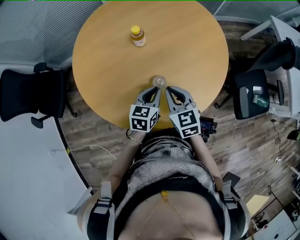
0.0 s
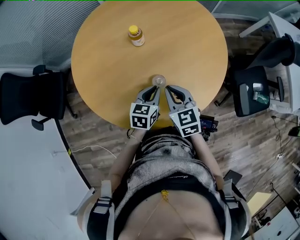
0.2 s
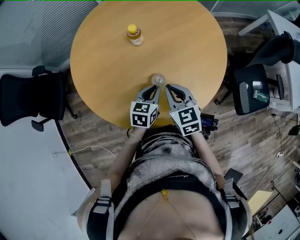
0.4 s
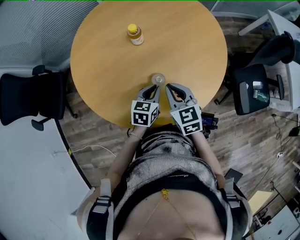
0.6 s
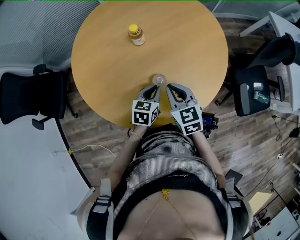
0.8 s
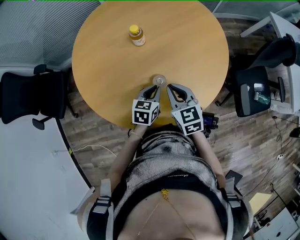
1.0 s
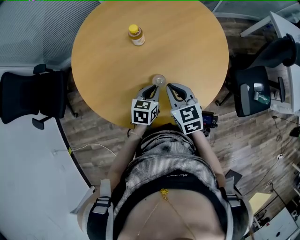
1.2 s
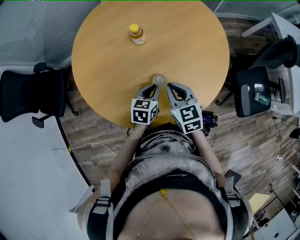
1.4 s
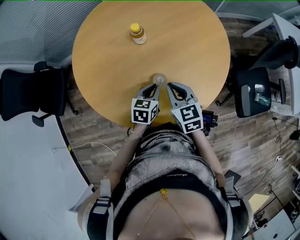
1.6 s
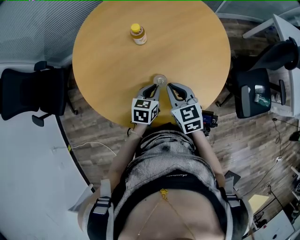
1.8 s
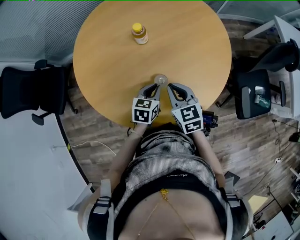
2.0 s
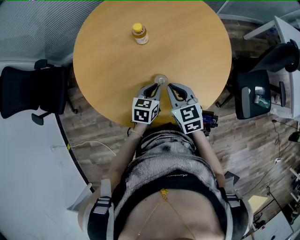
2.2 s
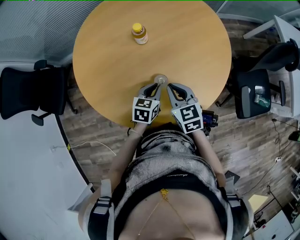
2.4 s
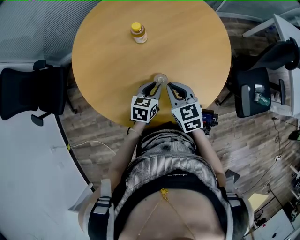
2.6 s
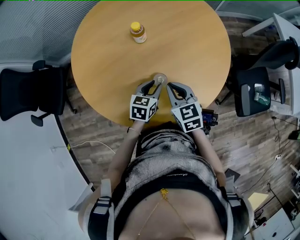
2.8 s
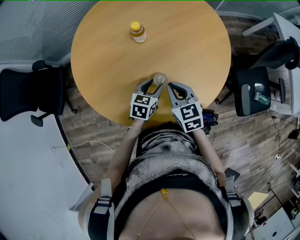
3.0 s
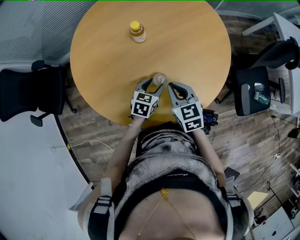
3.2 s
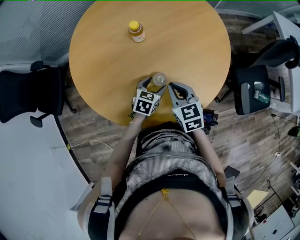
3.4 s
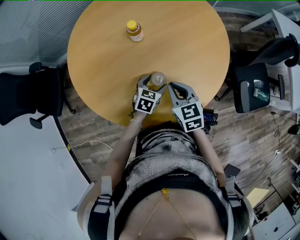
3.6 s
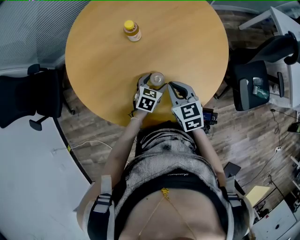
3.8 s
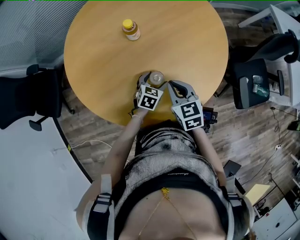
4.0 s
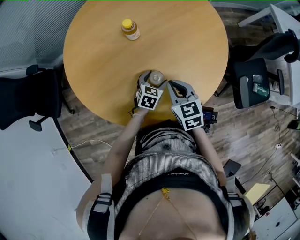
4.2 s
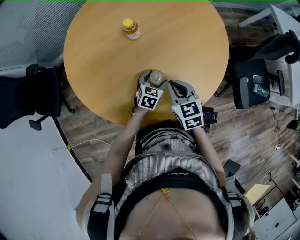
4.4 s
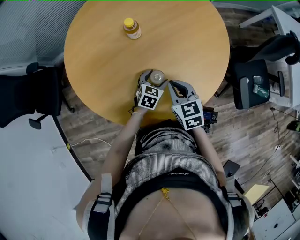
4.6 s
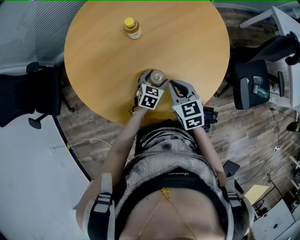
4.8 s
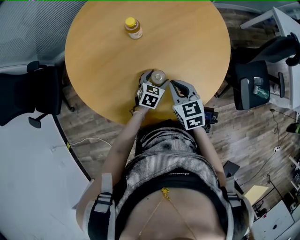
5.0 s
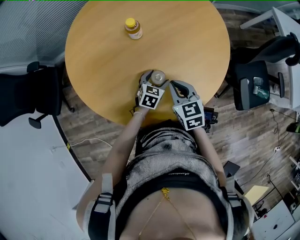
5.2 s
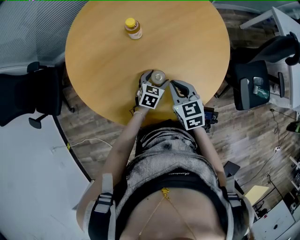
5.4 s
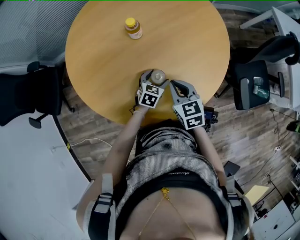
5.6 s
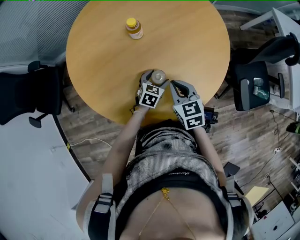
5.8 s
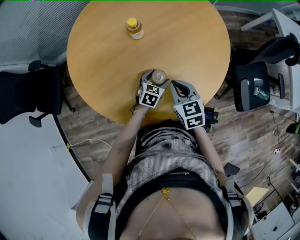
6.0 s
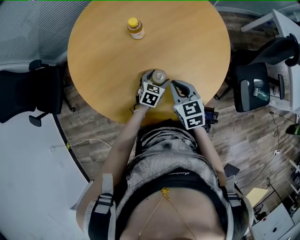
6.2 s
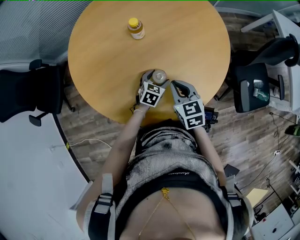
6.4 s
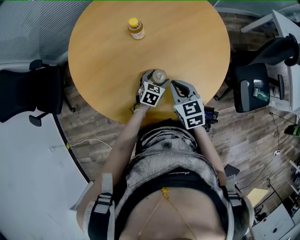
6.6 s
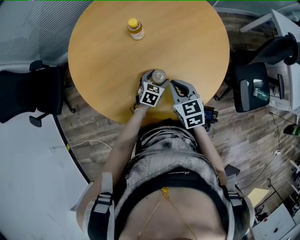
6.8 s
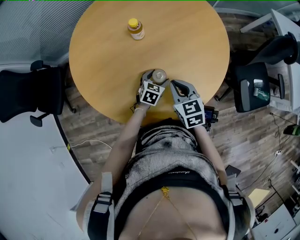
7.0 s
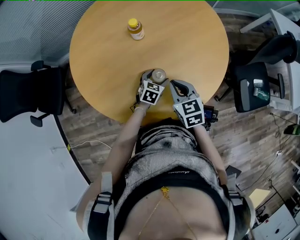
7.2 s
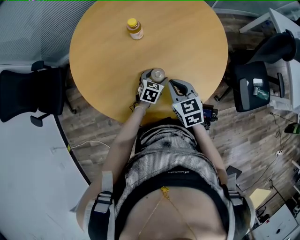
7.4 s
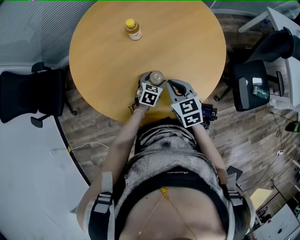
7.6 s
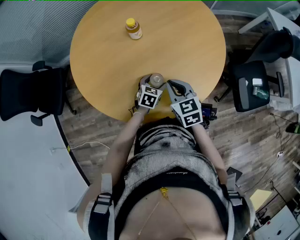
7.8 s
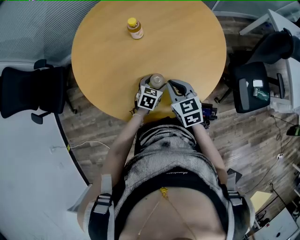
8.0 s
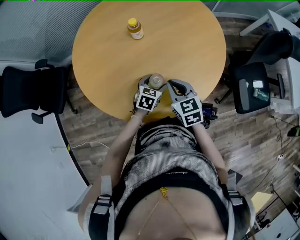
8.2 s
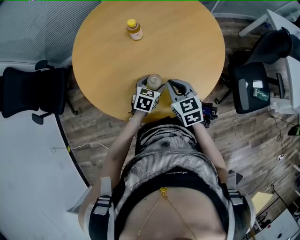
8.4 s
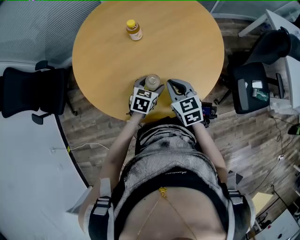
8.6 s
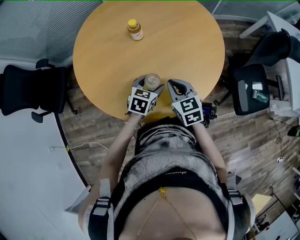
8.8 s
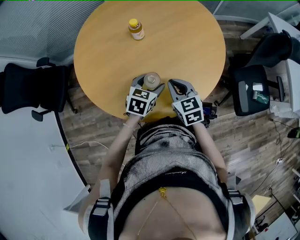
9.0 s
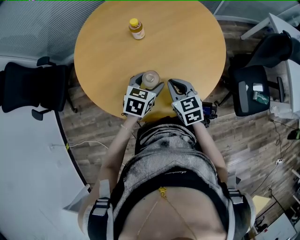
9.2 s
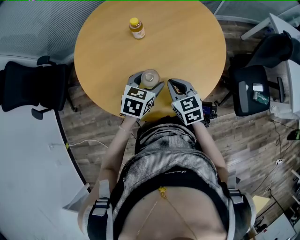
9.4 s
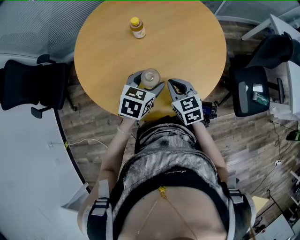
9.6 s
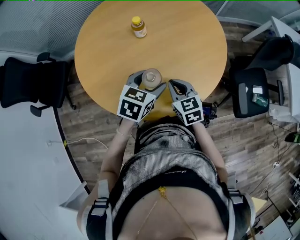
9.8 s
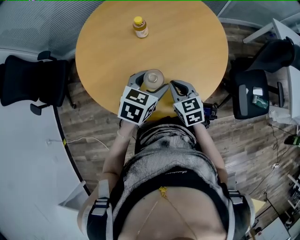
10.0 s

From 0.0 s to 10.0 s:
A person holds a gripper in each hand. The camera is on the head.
From 0.0 s to 1.4 s: The grippers move only a little.
From 1.4 s to 2.8 s: Both grippers stay put.
From 2.8 s to 4.2 s: The left gripper is displaced downward by some 10 cm, and opens.
From 4.2 s to 7.2 s: Neither gripper changes place.
From 7.2 s to 8.6 s: The left gripper goes some 10 cm upward and backward.
From 8.6 s to 10.0 s: The left gripper travels upward by some 15 cm.

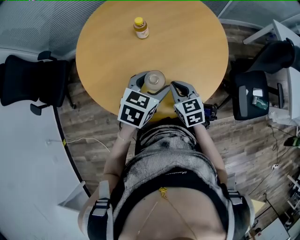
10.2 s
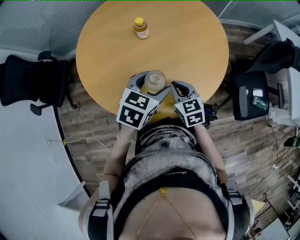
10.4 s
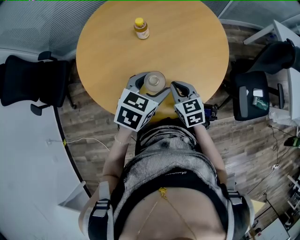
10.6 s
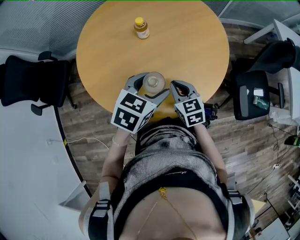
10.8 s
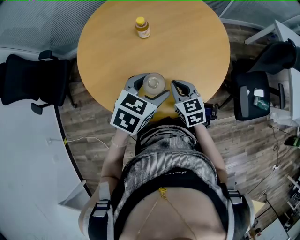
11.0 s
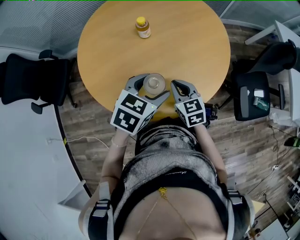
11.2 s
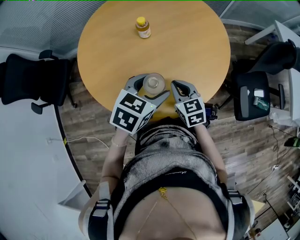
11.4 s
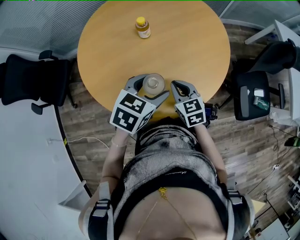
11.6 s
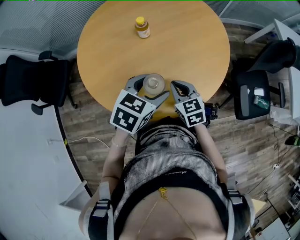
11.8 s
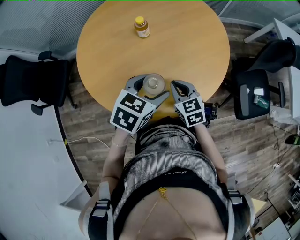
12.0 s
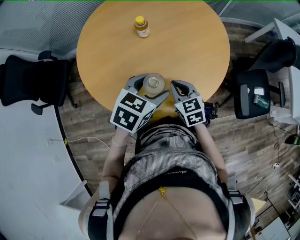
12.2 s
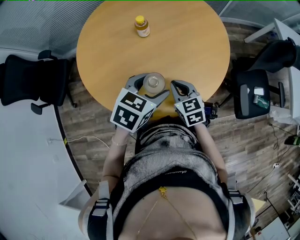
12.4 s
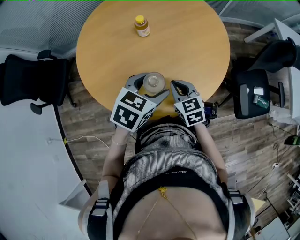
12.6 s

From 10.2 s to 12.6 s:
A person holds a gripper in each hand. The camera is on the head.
From 10.2 s to 11.4 s: There are only small adjustments of the grippers.
From 11.4 s to 12.6 s: The two grippers keep their place.

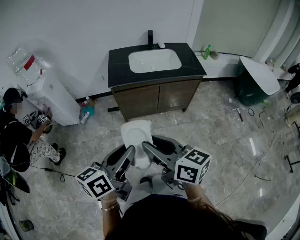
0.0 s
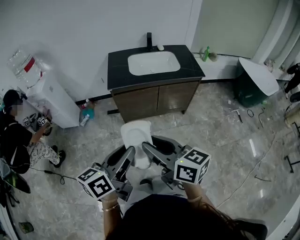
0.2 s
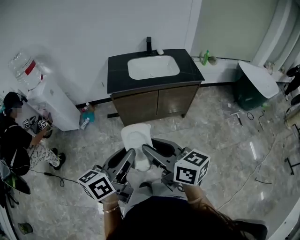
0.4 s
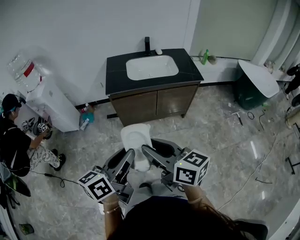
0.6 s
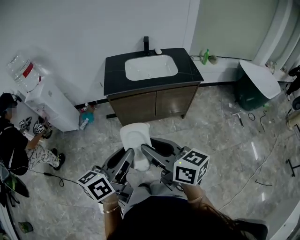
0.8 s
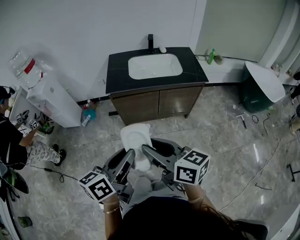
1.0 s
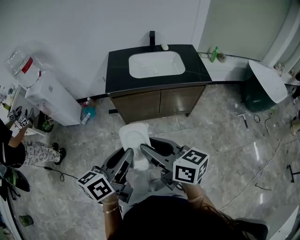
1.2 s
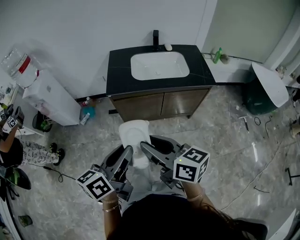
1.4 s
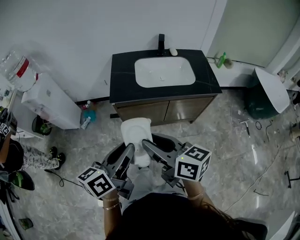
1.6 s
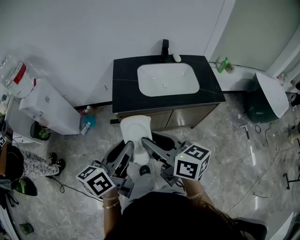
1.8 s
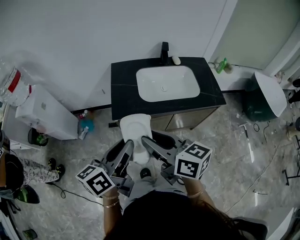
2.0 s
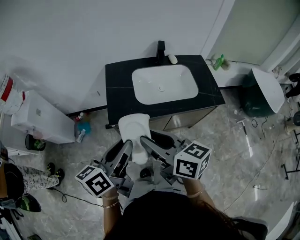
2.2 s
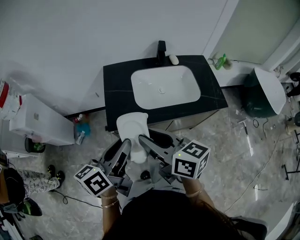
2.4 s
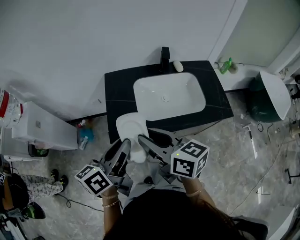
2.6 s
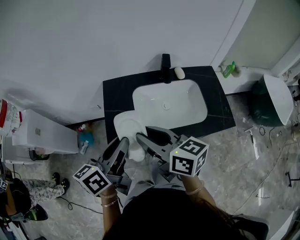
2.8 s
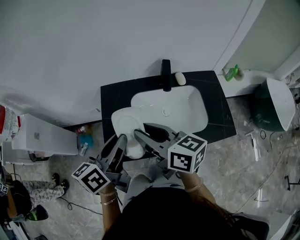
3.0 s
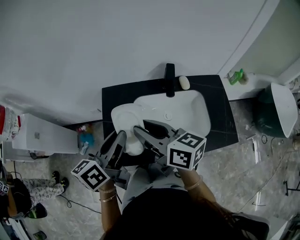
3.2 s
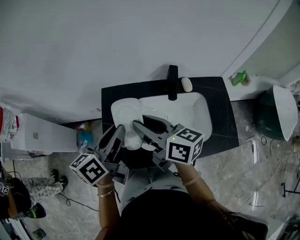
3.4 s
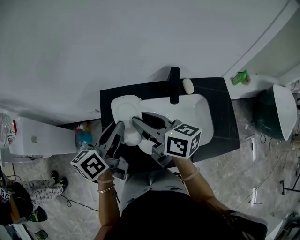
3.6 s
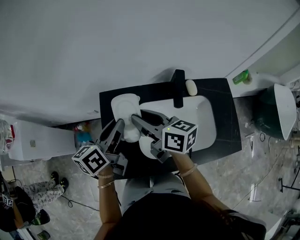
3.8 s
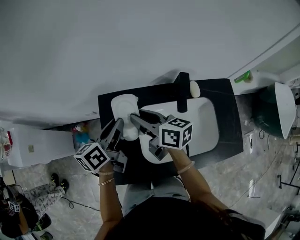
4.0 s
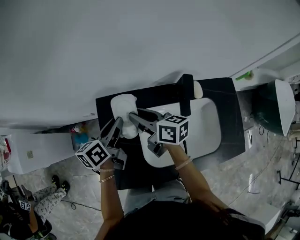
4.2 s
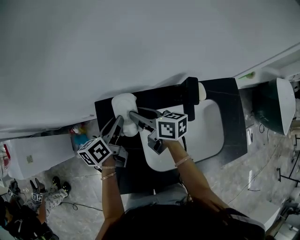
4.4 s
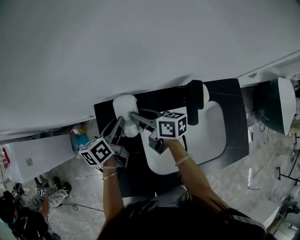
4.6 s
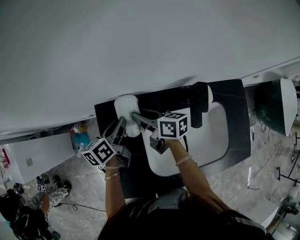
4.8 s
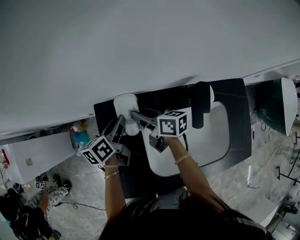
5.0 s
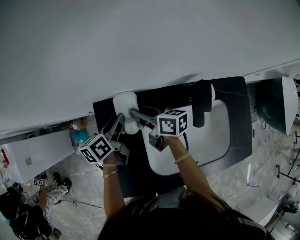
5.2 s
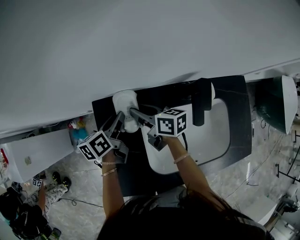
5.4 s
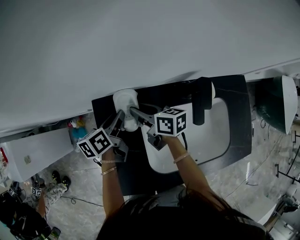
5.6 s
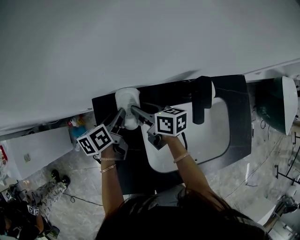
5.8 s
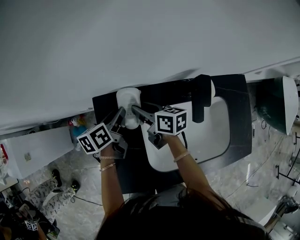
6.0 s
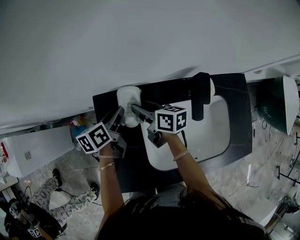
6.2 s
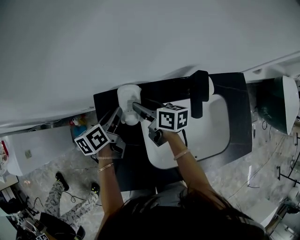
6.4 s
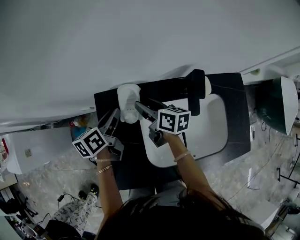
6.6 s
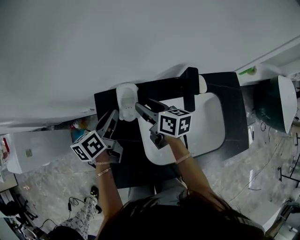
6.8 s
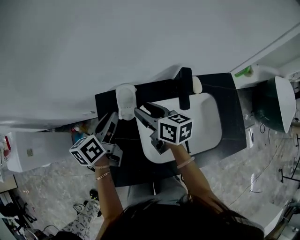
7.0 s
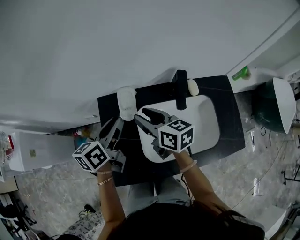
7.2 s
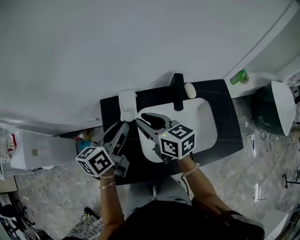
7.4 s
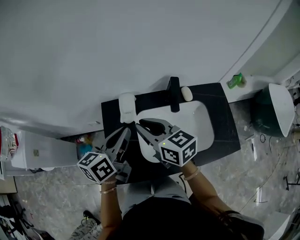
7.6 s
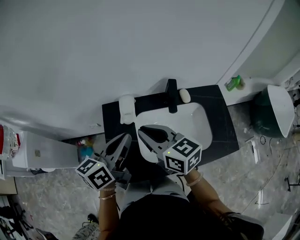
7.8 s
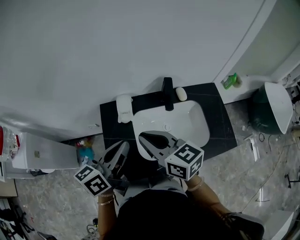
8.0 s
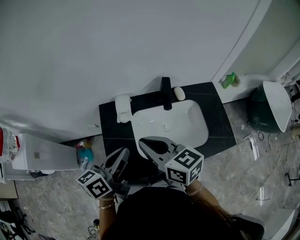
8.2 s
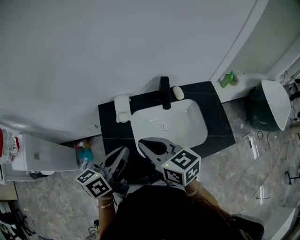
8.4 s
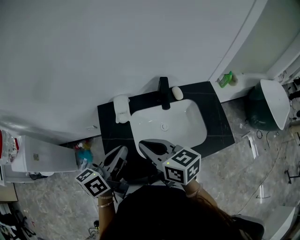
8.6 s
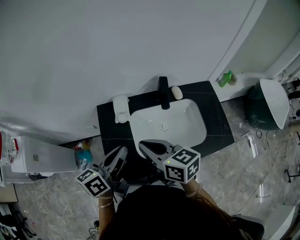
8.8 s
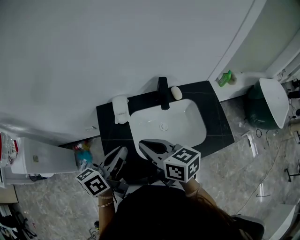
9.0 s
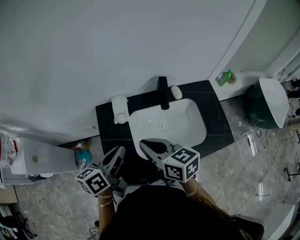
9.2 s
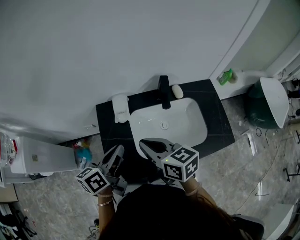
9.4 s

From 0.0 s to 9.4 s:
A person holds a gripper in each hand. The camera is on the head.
From 0.0 s to 1.6 s: The grippers both shift forward by roughly 20 cm.
From 1.6 s to 3.2 s: The two grippers travel together, forward, roughly 40 cm.
From 3.2 s to 4.8 s: Both grippers travel together forward and downward, roughly 35 cm. The right gripper swivels about 20 degrees.
From 4.8 s to 6.2 s: The grippers stay close to where they were, moving slightly.
From 6.2 s to 7.8 s: Both grippers move upward and backward, approximately 30 cm. The right gripper turns by some 30 degrees, and closes its fingers. The left gripper swivels roughly 30 degrees, and closes up.
From 7.8 s to 9.4 s: The left gripper is displaced downward by roughly 5 cm; the right gripper shifts by approximately 5 cm.

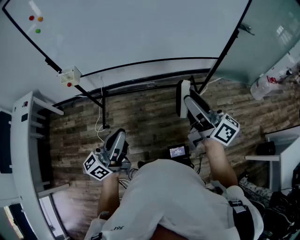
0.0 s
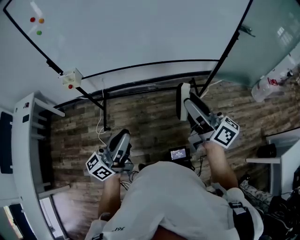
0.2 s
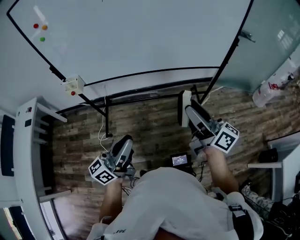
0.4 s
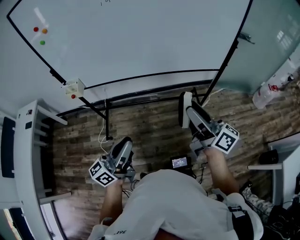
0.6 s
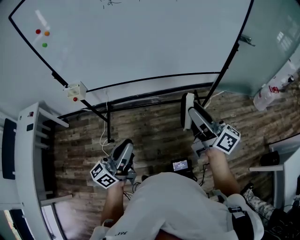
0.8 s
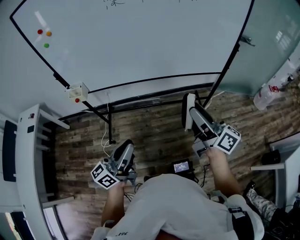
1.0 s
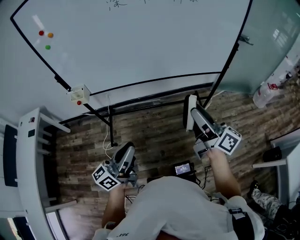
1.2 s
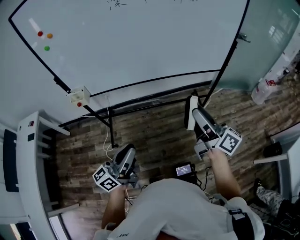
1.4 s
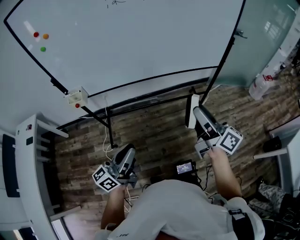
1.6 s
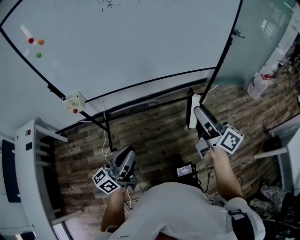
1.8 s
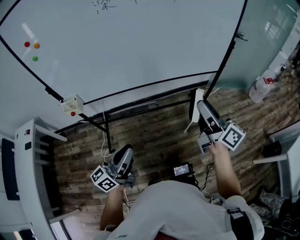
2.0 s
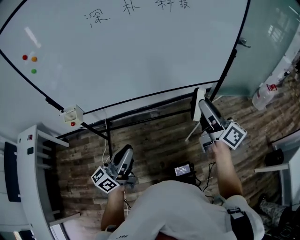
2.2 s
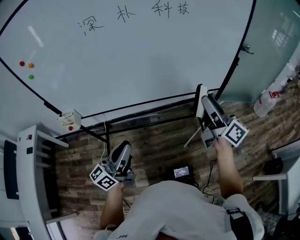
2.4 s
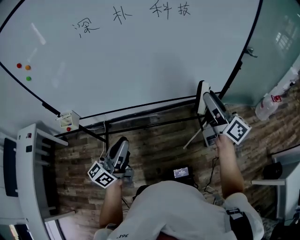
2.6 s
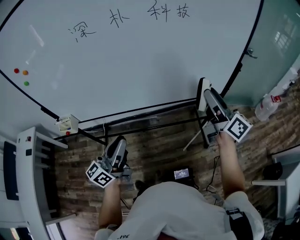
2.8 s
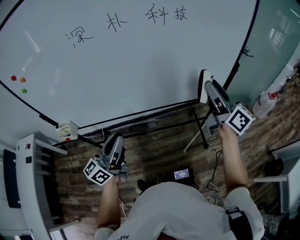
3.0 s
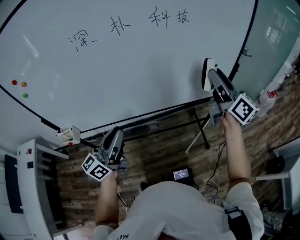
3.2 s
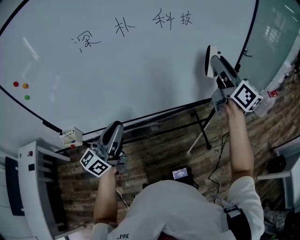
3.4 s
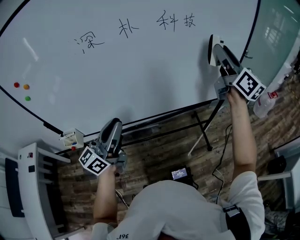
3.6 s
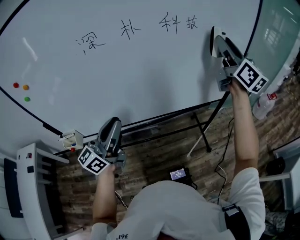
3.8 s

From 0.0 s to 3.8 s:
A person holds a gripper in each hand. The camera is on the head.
From 0.0 s to 1.2 s: The grippers stay close to where they were, moving slightly.
From 1.2 s to 2.6 s: The left gripper heads forward, covering some 20 cm. Meanwhile the right gripper heads forward and to the right, covering approximately 25 cm.
From 2.6 s to 3.8 s: The left gripper moves forward, upward and to the left, roughly 15 cm. The right gripper shifts approximately 25 cm upward and forward, and swivels about 30 degrees.
